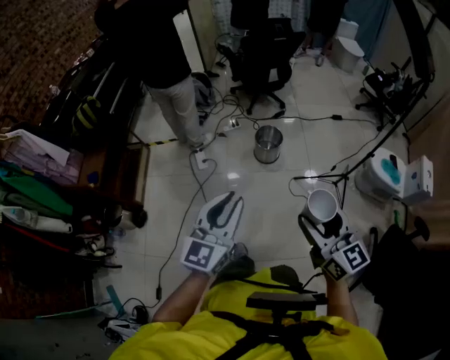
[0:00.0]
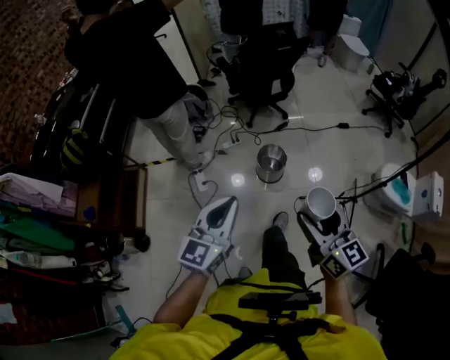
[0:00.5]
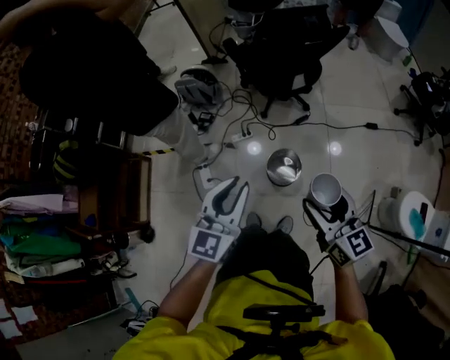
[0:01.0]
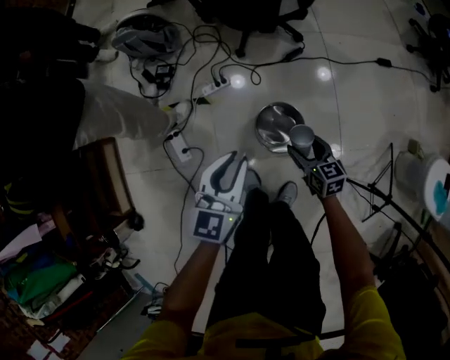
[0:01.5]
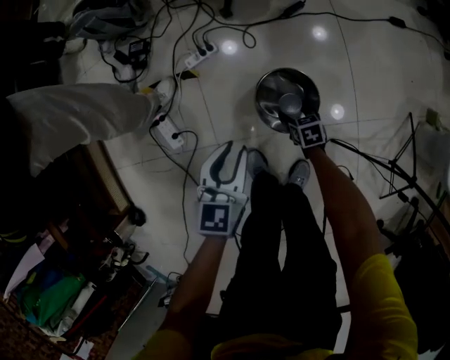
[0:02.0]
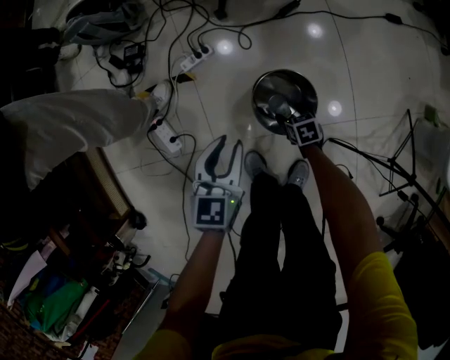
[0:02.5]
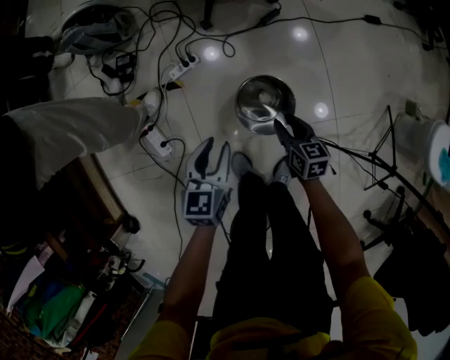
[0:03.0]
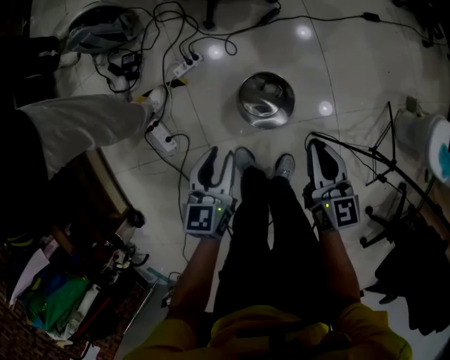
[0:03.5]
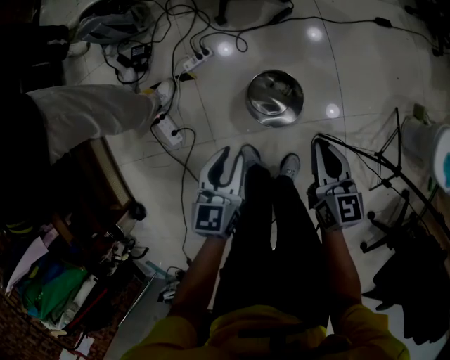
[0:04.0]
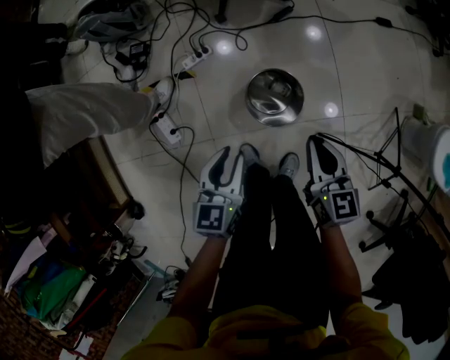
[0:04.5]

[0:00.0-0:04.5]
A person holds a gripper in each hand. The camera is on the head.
0:00.0 to 0:02.0: The two grippers travel together, forward, roughly 70 cm. Both grippers move downward, about 70 cm. The left gripper tips its fingers downward by roughly 30 degrees. Meanwhile the right gripper tilts its fingers approximately 60 degrees downward.
0:02.0 to 0:04.5: The left gripper is displaced upward by about 5 cm. The right gripper moves upward, about 35 cm, points its fingers about 30 degrees further upward, and closes.

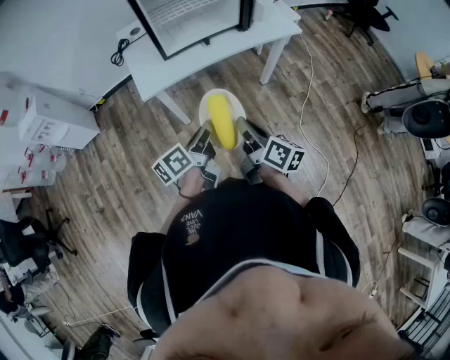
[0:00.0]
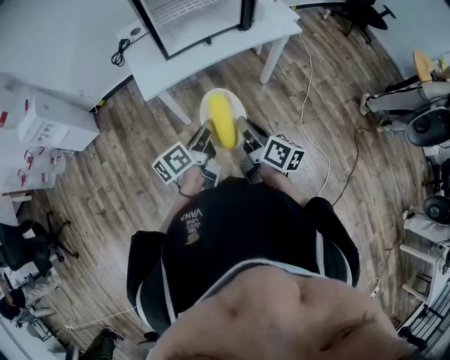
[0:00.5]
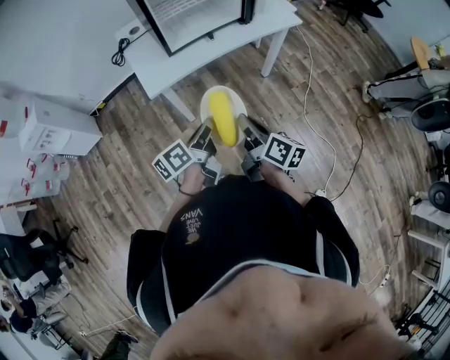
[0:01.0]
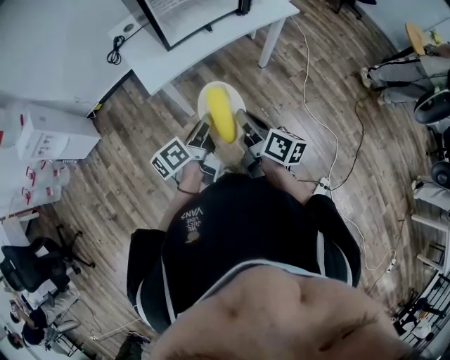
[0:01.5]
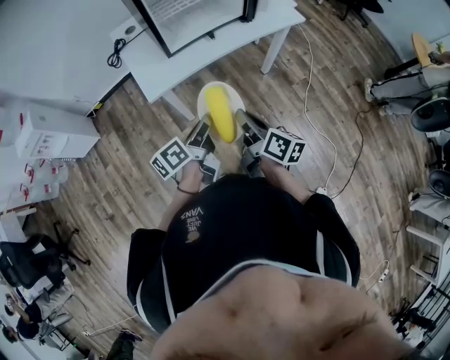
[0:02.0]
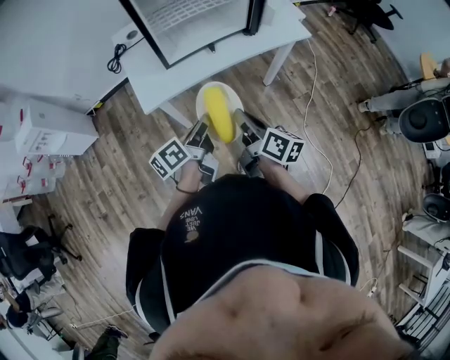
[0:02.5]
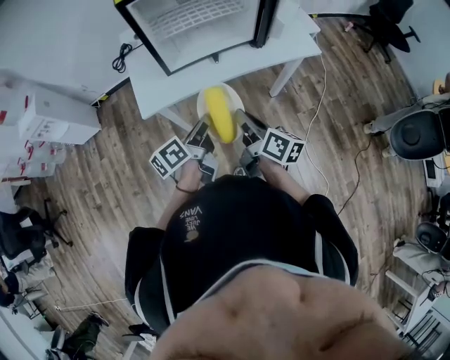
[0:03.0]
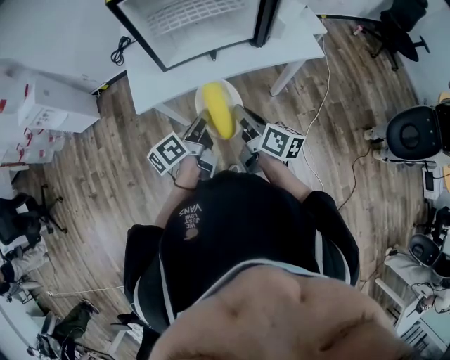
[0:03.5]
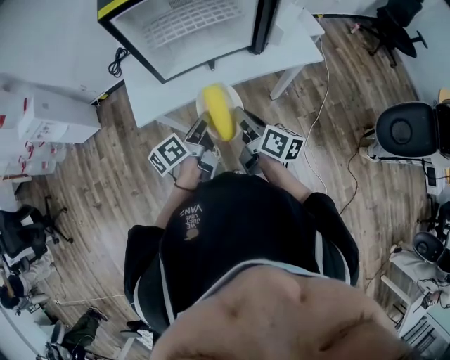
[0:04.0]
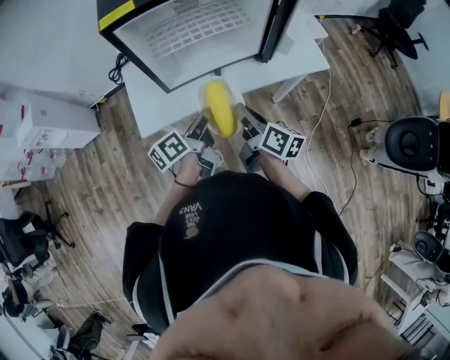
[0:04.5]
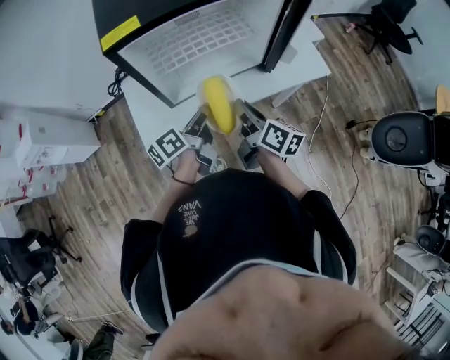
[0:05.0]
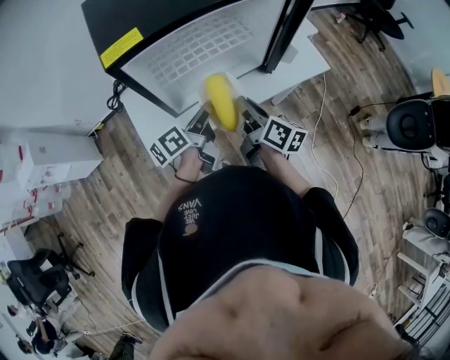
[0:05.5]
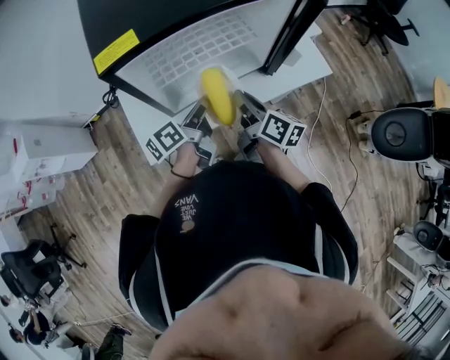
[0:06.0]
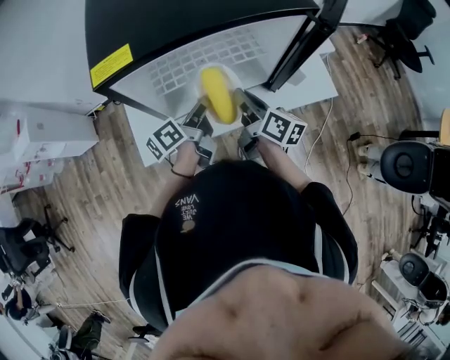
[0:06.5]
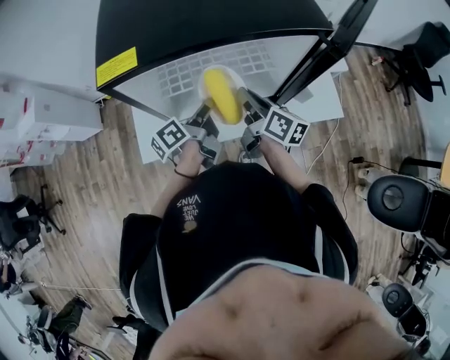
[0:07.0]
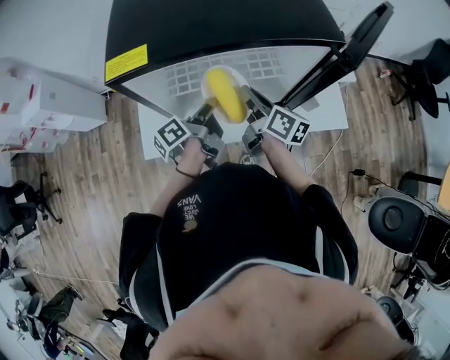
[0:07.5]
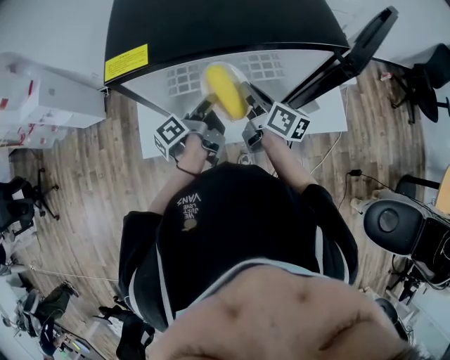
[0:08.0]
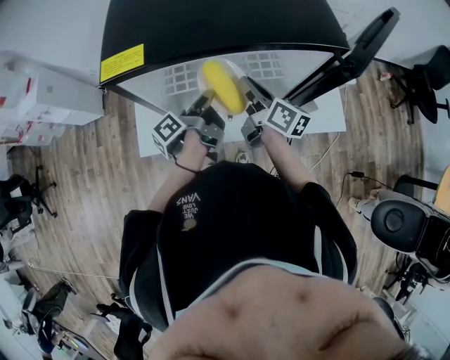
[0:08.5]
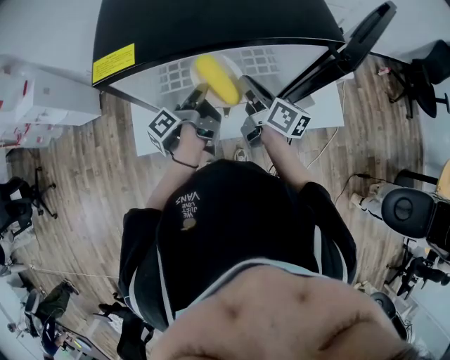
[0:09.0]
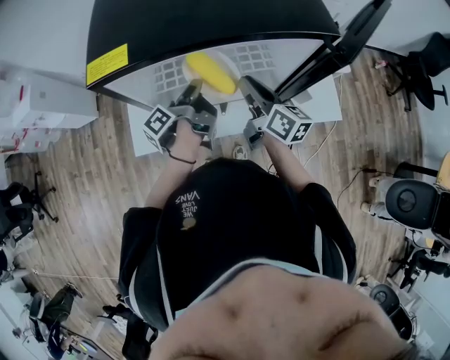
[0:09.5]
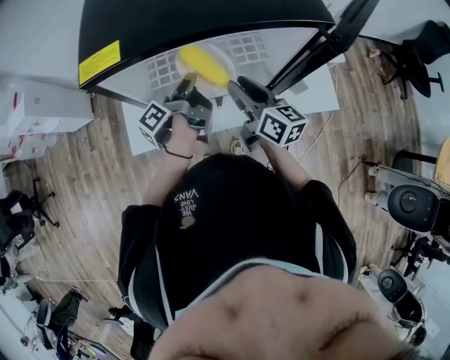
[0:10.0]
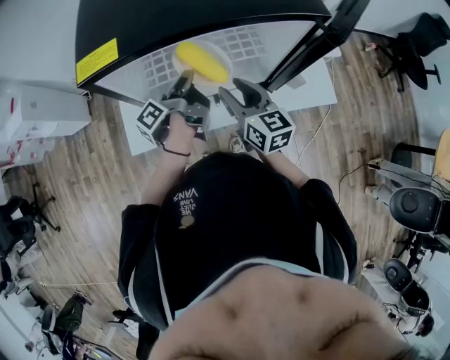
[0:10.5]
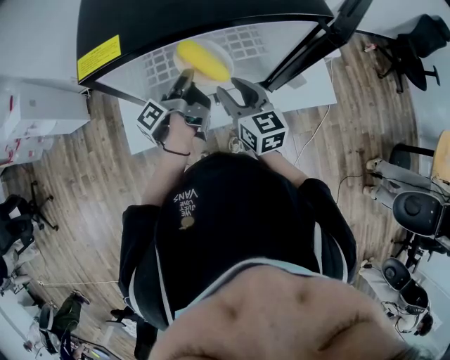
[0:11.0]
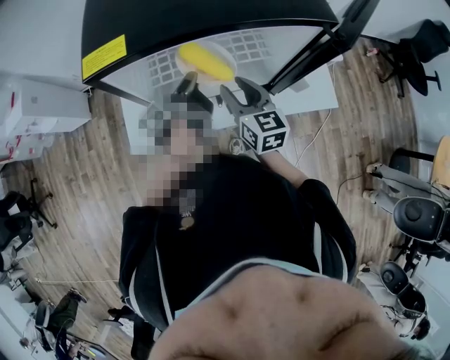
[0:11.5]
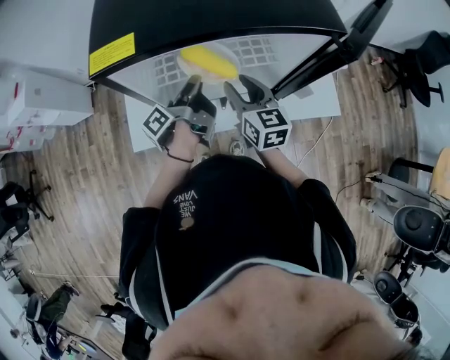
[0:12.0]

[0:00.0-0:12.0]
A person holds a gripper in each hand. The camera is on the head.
0:00.0 to 0:02.0: The two grippers go some 5 cm to the left.
0:02.0 to 0:04.0: Both grippers move forward and to the right, some 20 cm.
0:04.0 to 0:06.0: The two grippers go roughly 20 cm forward.
0:06.0 to 0:08.0: The right gripper is displaced forward by some 15 cm. The left gripper moves forward, about 10 cm, and changes its angle by about 30 degrees.
0:08.0 to 0:10.0: The right gripper moves roughly 5 cm, and opens its fingers.
0:10.0 to 0:12.0: The right gripper turns by approximately 20 degrees.

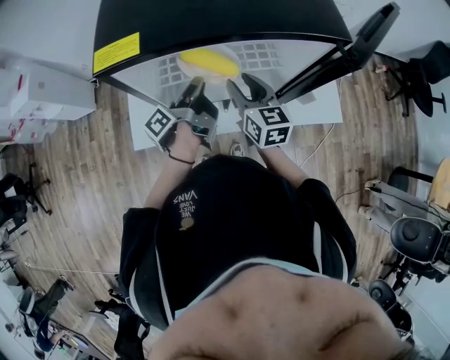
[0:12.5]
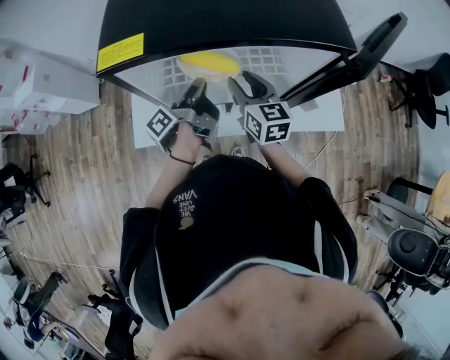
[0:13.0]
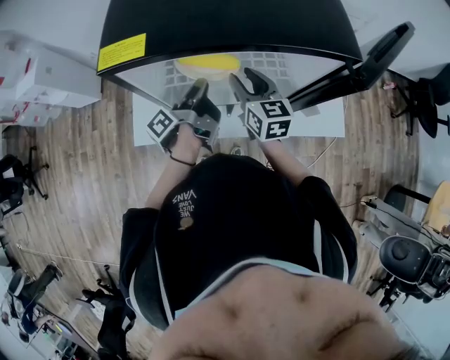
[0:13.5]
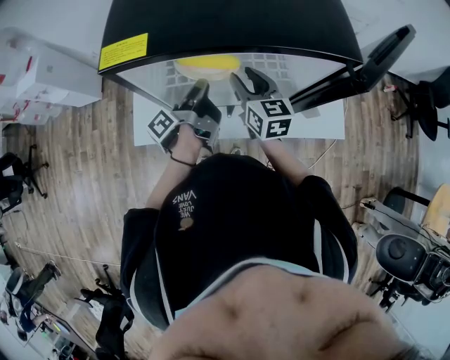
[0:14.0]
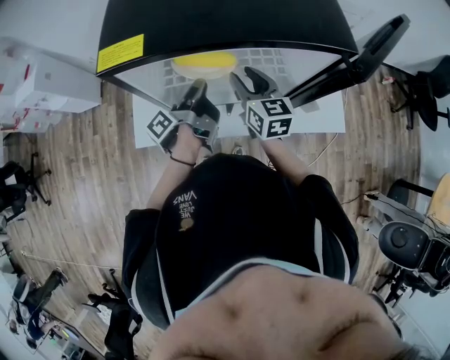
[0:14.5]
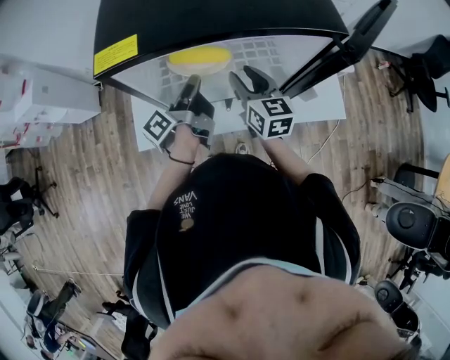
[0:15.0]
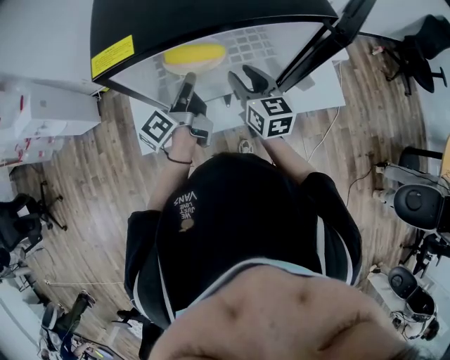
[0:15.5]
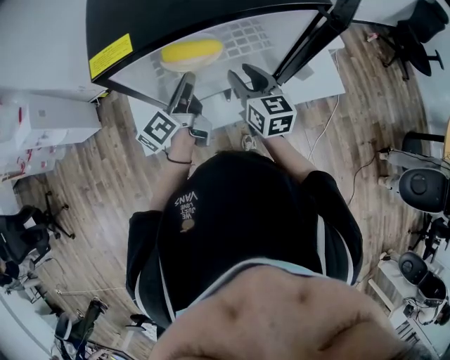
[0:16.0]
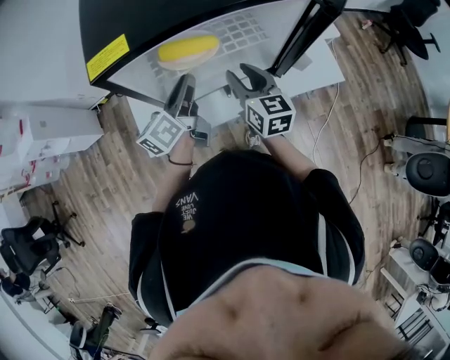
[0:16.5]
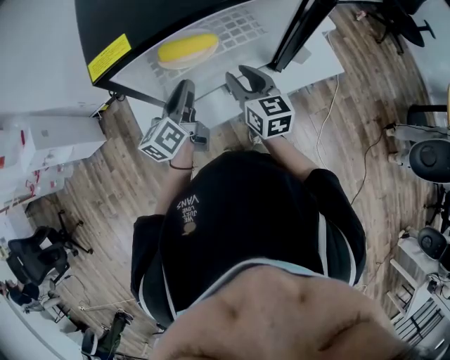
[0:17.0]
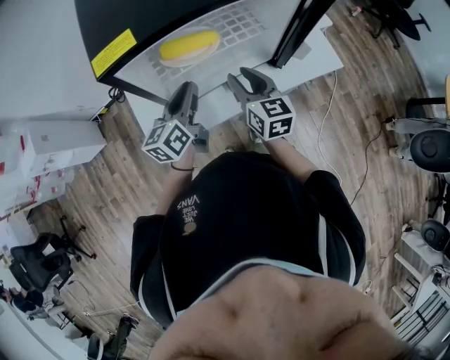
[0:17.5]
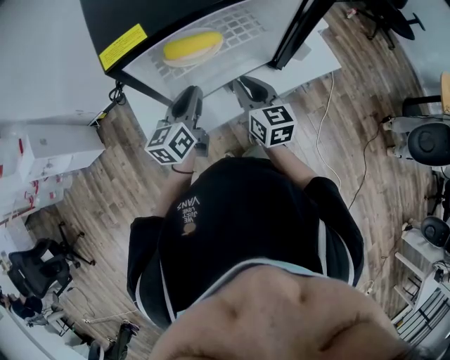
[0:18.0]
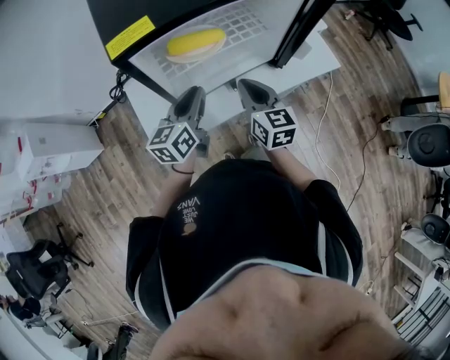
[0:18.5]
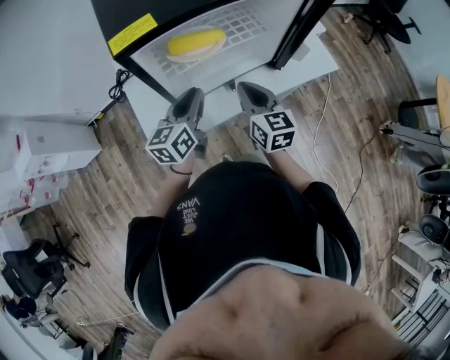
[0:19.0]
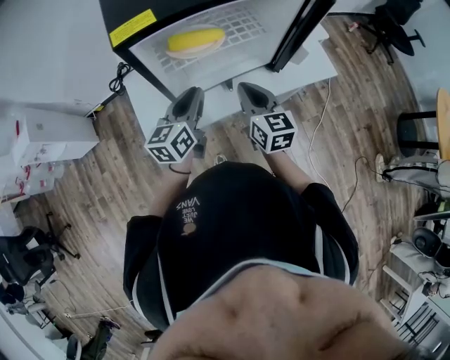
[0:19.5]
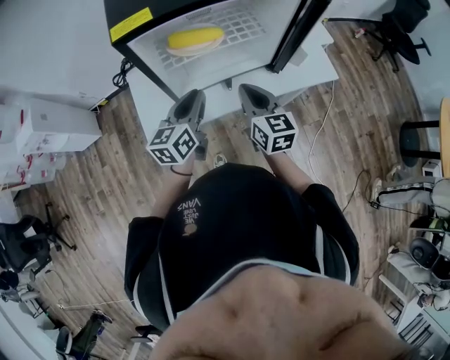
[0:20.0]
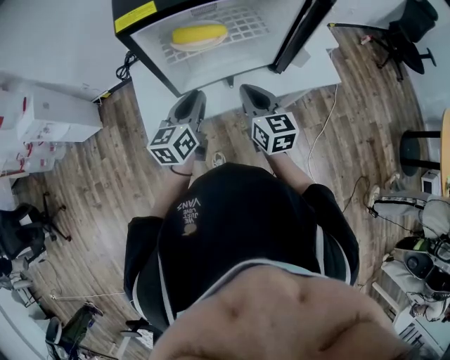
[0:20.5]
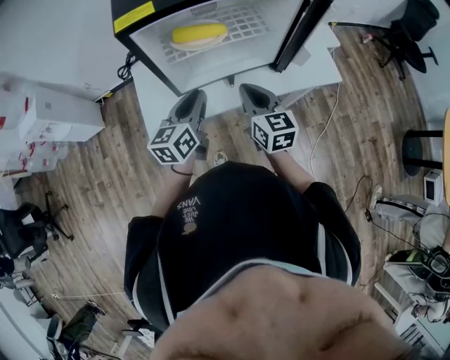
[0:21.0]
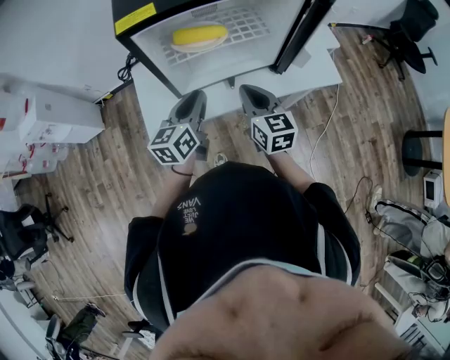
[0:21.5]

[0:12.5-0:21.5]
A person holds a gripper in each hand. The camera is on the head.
0:12.5 to 0:14.5: The grippers stay close to where they were, moving slightly.
0:14.5 to 0:17.0: The left gripper moves some 5 cm, and rolls clockwise, seen from behind, by roughly 60 degrees, while the right gripper is displaced backward by roughly 10 cm.
0:17.0 to 0:19.5: Both grippers travel together backward, about 5 cm. The right gripper closes up.
0:19.5 to 0:21.5: The grippers stay close to where they were, moving slightly.

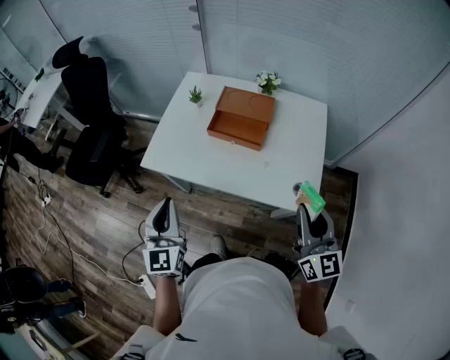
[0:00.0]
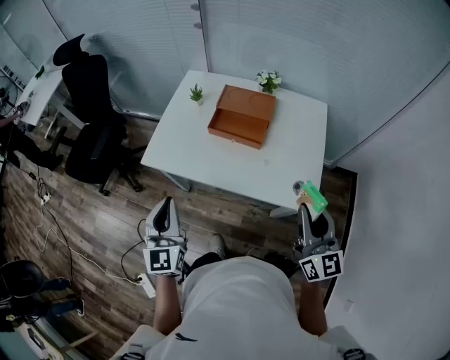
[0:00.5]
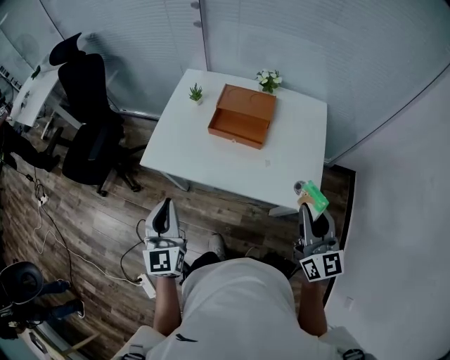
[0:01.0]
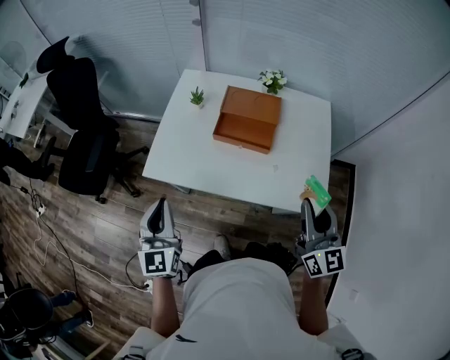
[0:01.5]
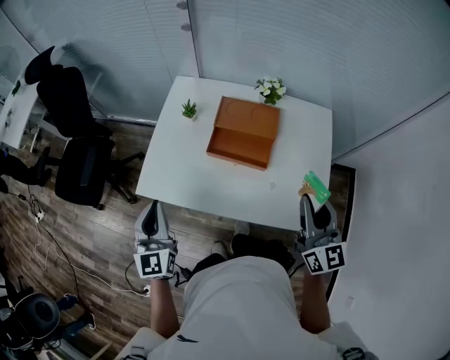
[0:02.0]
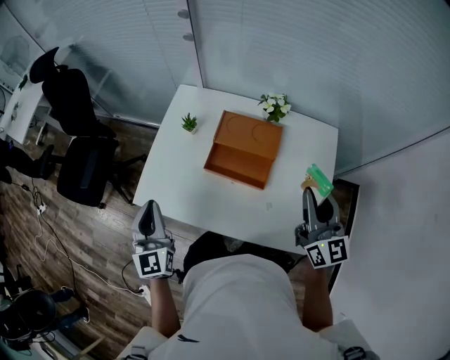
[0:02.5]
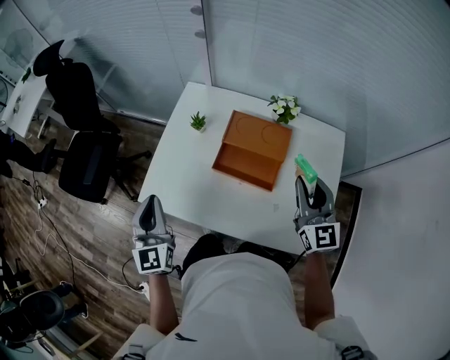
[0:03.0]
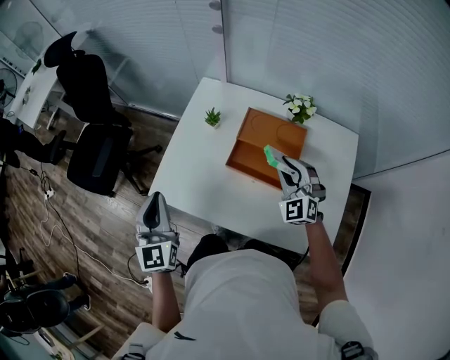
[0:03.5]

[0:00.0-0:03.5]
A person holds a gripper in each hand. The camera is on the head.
0:00.0 to 0:02.0: The two grippers go roughly 15 cm forward.
0:02.0 to 0:03.5: The right gripper shifts roughly 25 cm forward and downward, and rotates around the line of its fingers by about 50 degrees, counterclockwise from behind; the left gripper shifts roughly 5 cm forward.
